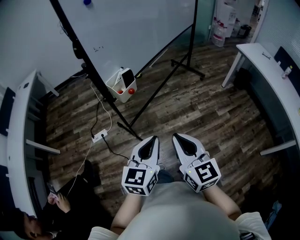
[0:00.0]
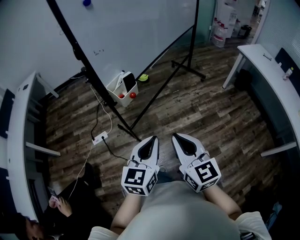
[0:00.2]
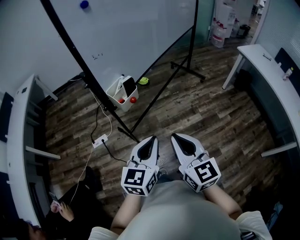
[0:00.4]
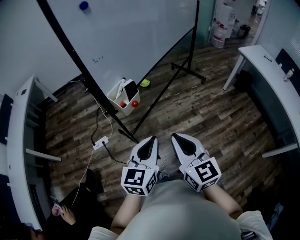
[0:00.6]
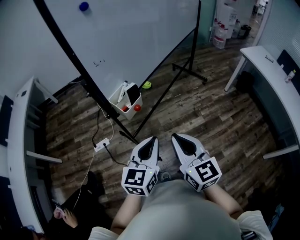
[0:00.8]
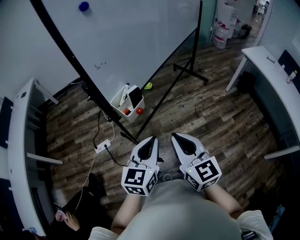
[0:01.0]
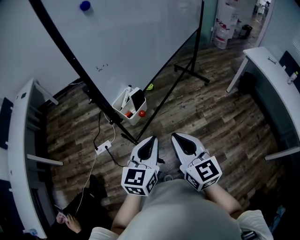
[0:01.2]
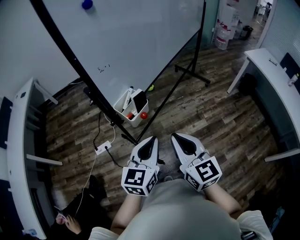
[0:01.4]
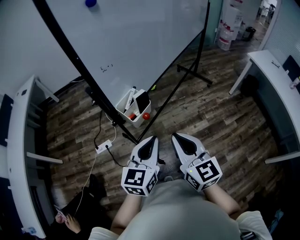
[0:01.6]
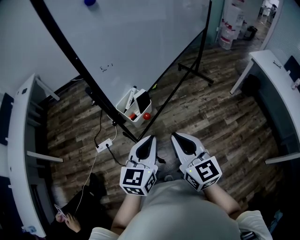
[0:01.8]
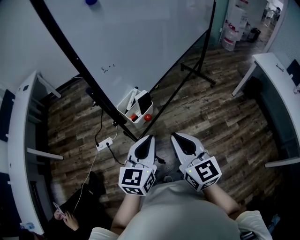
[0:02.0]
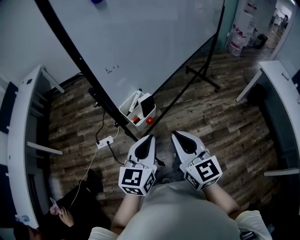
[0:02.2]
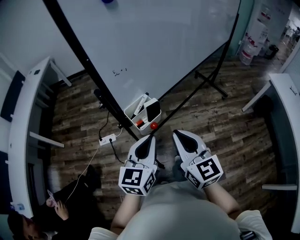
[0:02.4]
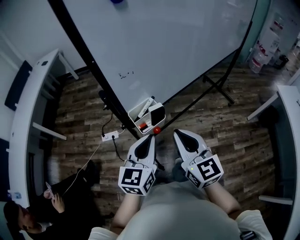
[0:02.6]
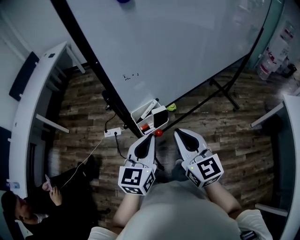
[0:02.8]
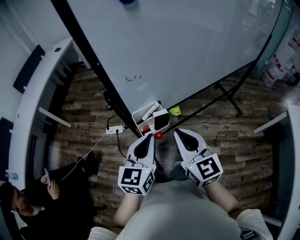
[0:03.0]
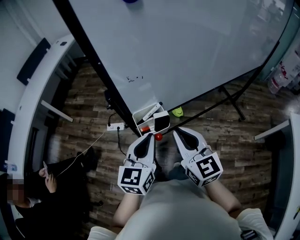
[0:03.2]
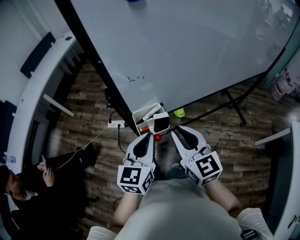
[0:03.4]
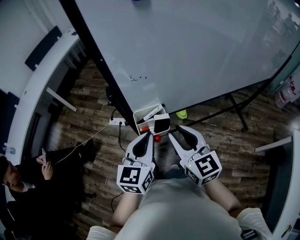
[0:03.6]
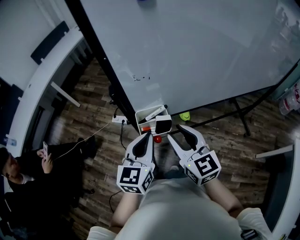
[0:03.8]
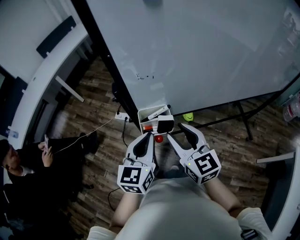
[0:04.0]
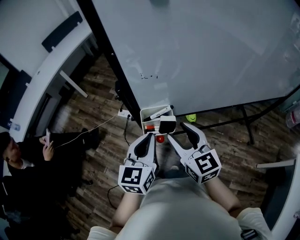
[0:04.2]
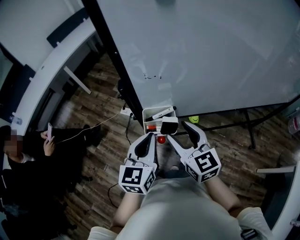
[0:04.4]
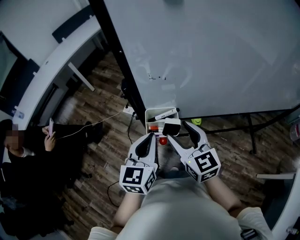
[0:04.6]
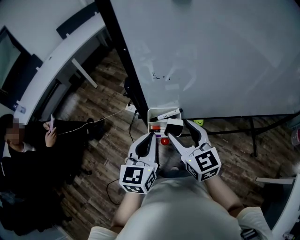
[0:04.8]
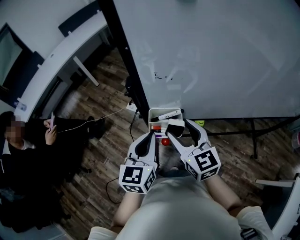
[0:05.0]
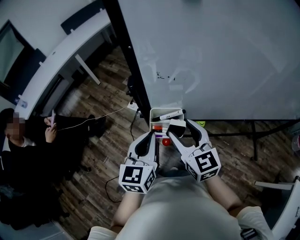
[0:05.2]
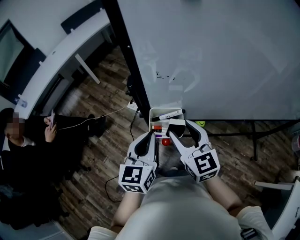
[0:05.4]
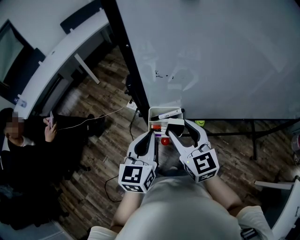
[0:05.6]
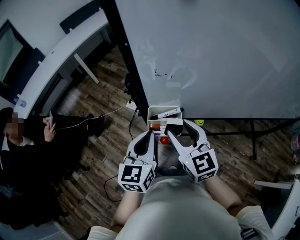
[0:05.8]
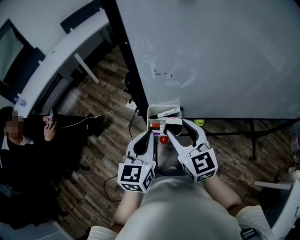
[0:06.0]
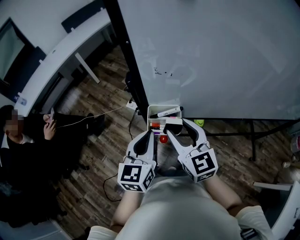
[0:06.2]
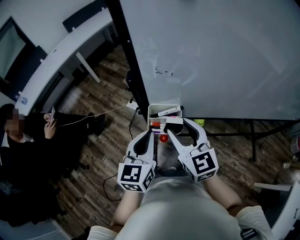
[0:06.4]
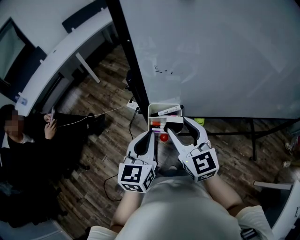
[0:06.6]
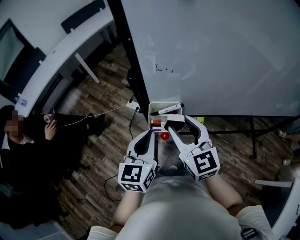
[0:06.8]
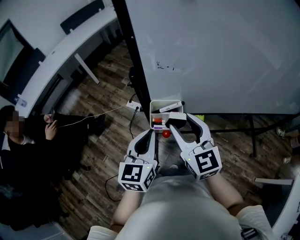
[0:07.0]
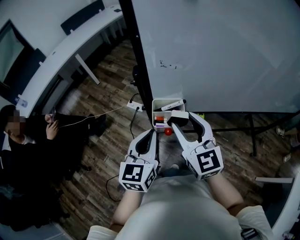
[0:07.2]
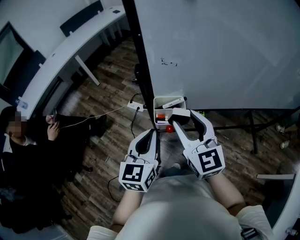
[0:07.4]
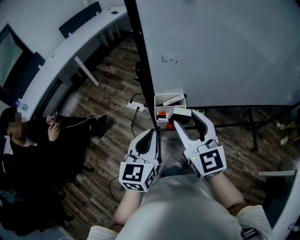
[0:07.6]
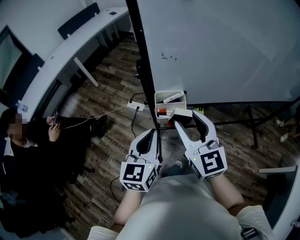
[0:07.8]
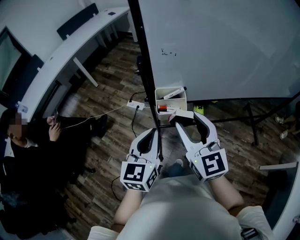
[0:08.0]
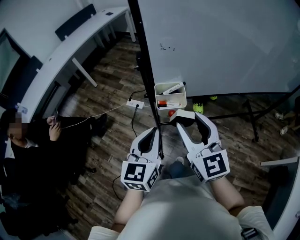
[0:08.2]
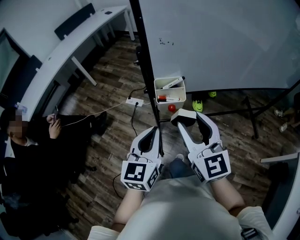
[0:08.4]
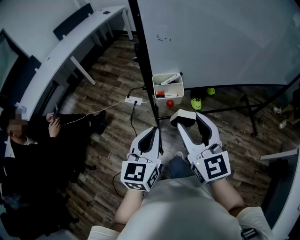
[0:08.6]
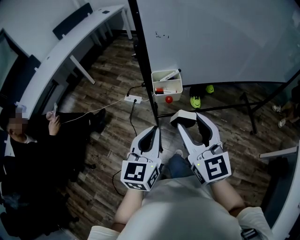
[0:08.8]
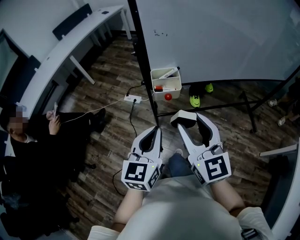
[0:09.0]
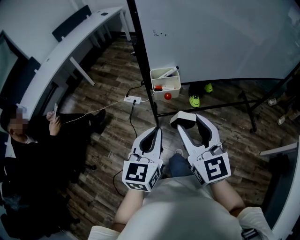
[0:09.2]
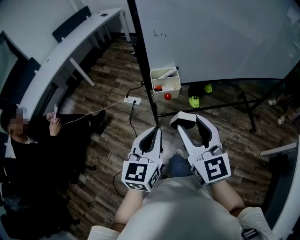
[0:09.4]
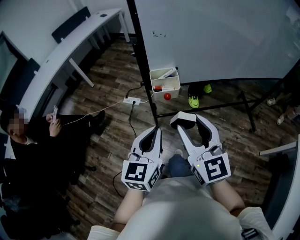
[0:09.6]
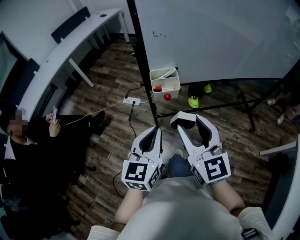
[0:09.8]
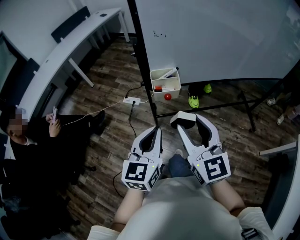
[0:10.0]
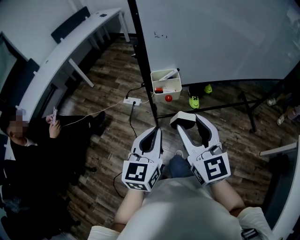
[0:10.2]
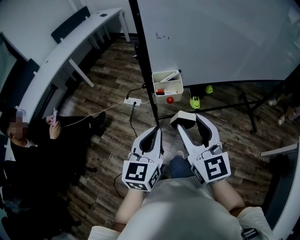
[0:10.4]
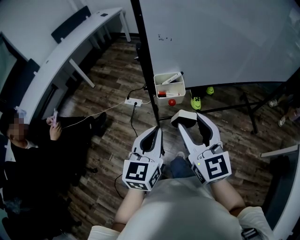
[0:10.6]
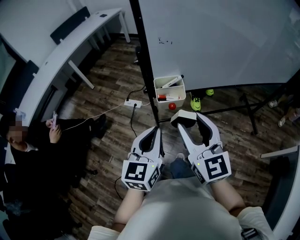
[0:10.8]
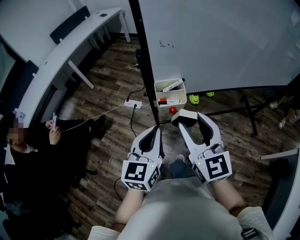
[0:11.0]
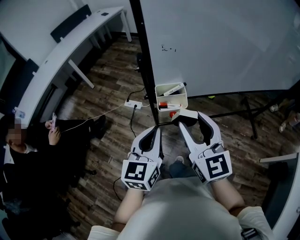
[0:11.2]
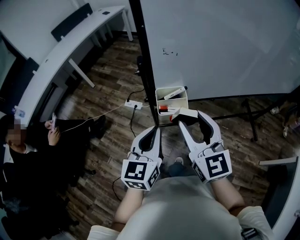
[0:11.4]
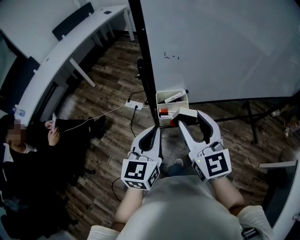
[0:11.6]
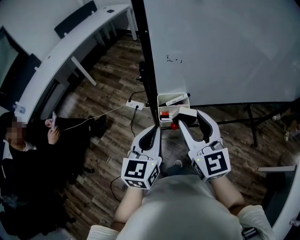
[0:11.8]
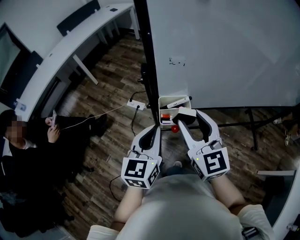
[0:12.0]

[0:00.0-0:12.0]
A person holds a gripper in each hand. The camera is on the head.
0:00.0 to 0:01.6: The two grippers go approximately 15 cm forward and to the left.
0:01.6 to 0:03.0: The left gripper ends up some 10 cm from where it was, and changes its angle by approximately 30 degrees. Meanwhile the right gripper moves about 15 cm, and rotates roughly 20 degrees.
0:03.0 to 0:04.4: The right gripper travels forward by approximately 5 cm, rotates approximately 30 degrees, and opens its fingers; the left gripper rotates some 20 degrees.
0:04.4 to 0:06.0: There are only small adjustments of the grippers.
0:06.0 to 0:07.6: The right gripper is displaced upward by approximately 5 cm; the left gripper moves backward, about 5 cm.
0:07.6 to 0:09.0: The two grippers go approximately 15 cm backward.
0:09.0 to 0:10.4: The grippers move only a little.
0:10.4 to 0:12.0: The two grippers go some 15 cm forward.

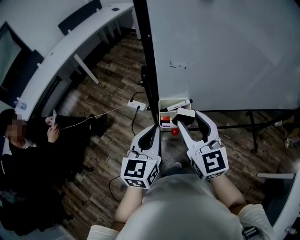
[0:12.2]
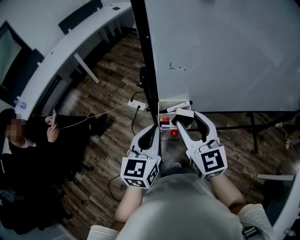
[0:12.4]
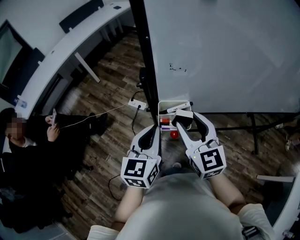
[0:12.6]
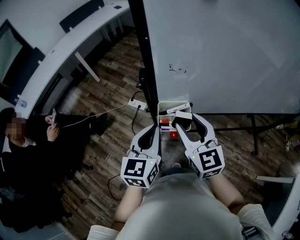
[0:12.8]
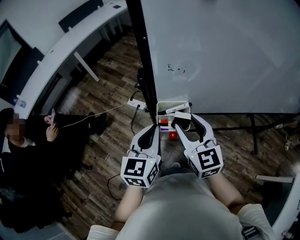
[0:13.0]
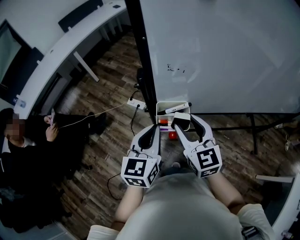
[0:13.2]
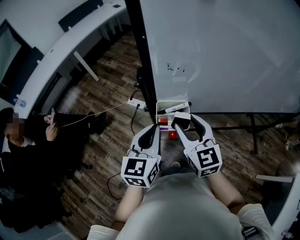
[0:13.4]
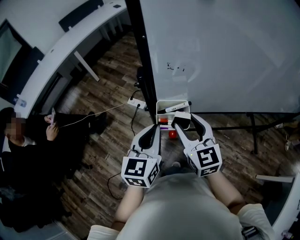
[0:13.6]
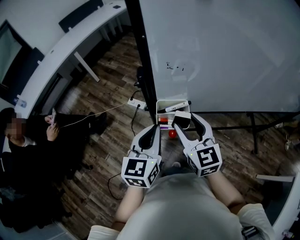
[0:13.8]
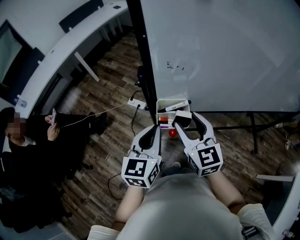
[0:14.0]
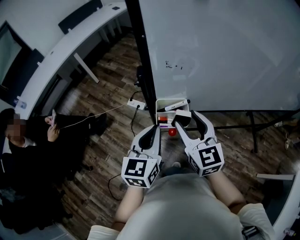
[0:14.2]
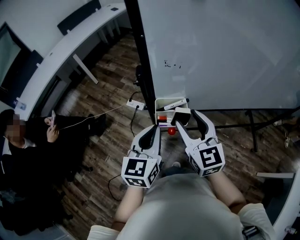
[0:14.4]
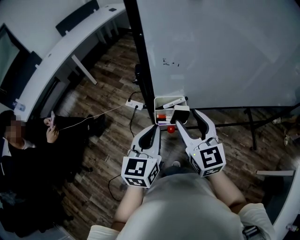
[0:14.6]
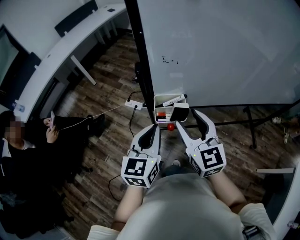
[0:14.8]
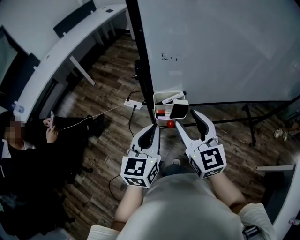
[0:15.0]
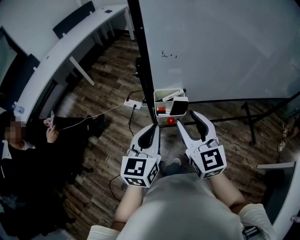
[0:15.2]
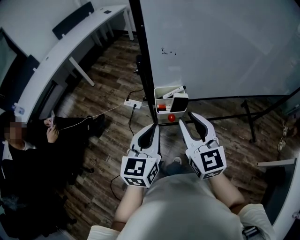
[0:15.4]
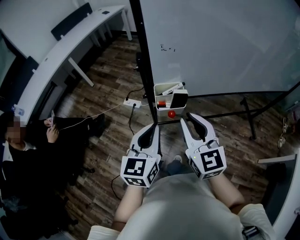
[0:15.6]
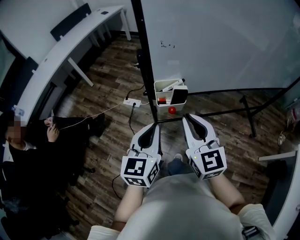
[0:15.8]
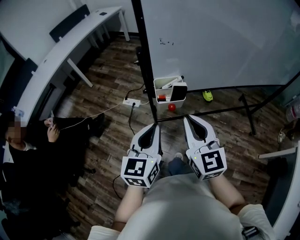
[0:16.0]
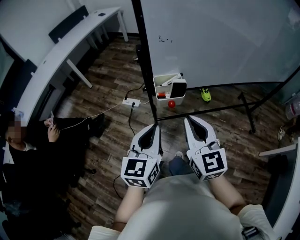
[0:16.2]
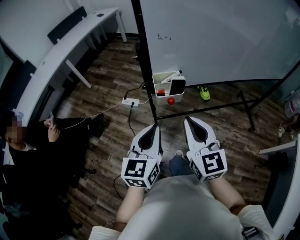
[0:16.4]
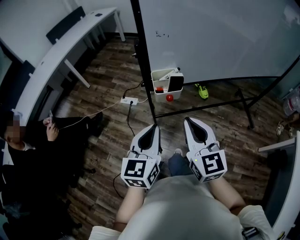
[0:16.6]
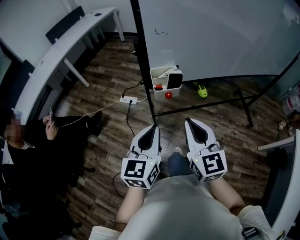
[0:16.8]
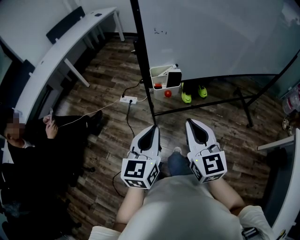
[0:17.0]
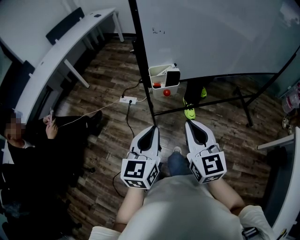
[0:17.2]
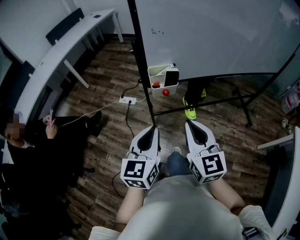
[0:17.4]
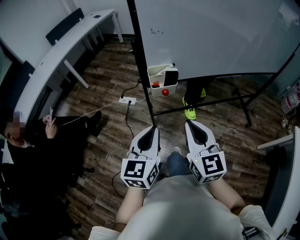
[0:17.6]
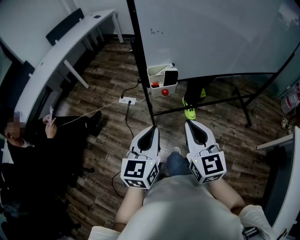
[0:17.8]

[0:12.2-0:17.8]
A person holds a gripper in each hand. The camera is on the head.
0:12.2 to 0:13.6: The right gripper travels downward by roughly 5 cm.
0:13.6 to 0:15.0: The right gripper goes about 5 cm backward.
0:15.0 to 0:16.4: The two grippers go roughly 10 cm backward. The right gripper closes its fingers.
0:16.4 to 0:17.8: Both grippers travel together backward, approximately 5 cm.

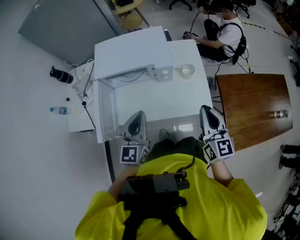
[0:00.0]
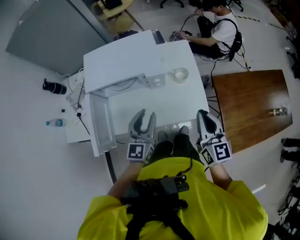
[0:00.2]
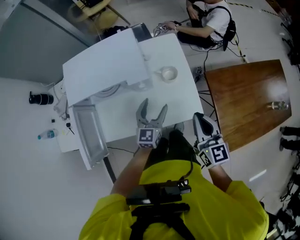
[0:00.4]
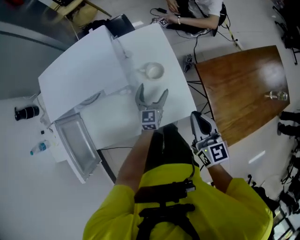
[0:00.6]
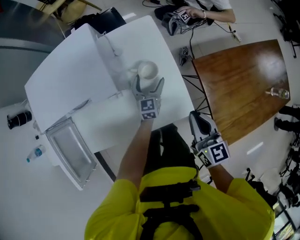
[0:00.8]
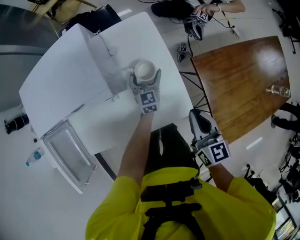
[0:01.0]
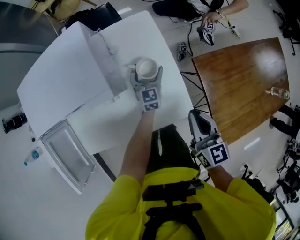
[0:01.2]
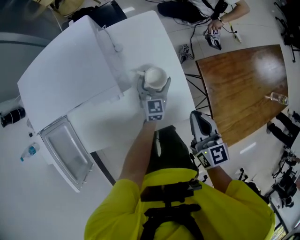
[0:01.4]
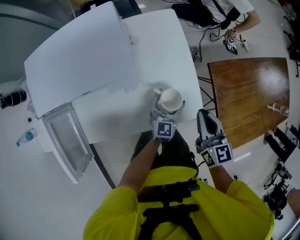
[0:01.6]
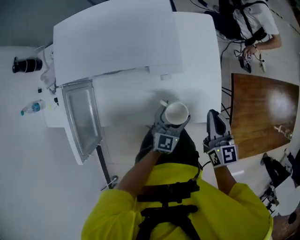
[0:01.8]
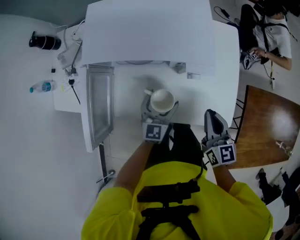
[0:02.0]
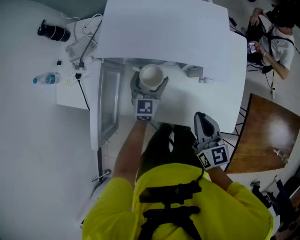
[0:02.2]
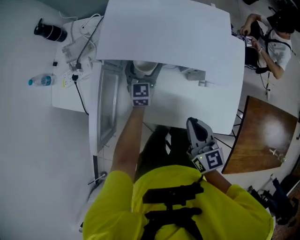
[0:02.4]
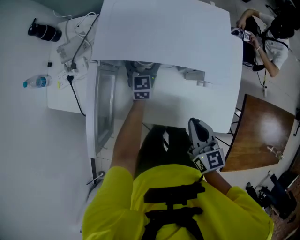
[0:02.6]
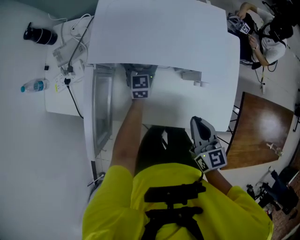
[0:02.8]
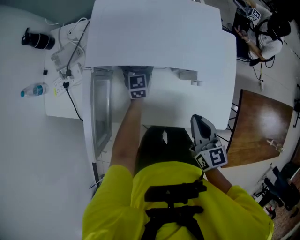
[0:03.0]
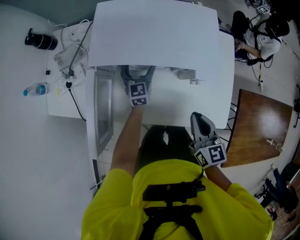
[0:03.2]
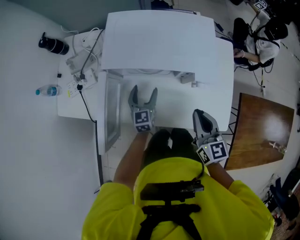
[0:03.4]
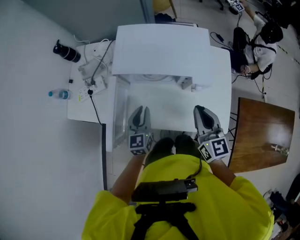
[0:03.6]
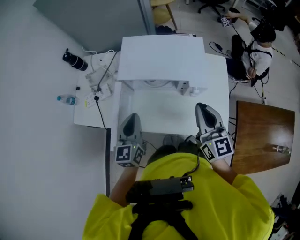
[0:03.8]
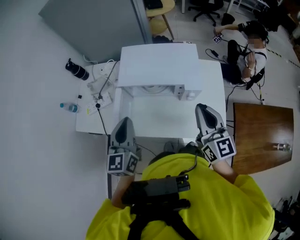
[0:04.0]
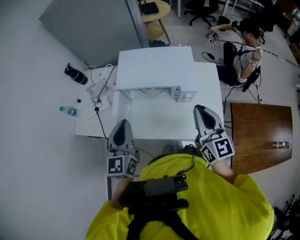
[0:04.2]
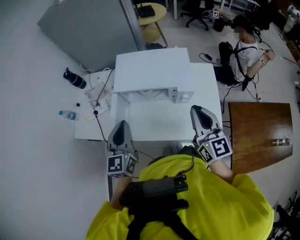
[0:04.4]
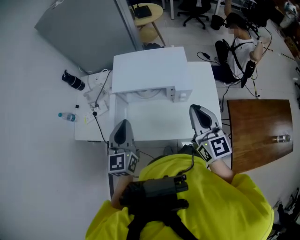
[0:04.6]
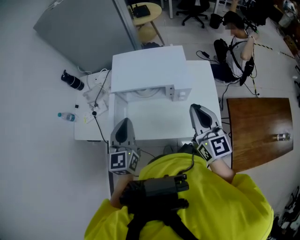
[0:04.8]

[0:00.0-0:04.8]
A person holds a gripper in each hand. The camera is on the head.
0:00.0 to 0:01.6: The right gripper shifts approximately 25 cm downward, forward and to the right, while the left gripper moves downward, to the right and forward, about 40 cm, and opens up.
0:01.6 to 0:03.2: The left gripper moves some 40 cm, and turns by roughly 40 degrees. The right gripper changes place by about 25 cm.
0:03.2 to 0:04.8: The right gripper moves upward, about 20 cm, and turns by some 30 degrees. The left gripper moves upward and backward, roughly 40 cm, and closes up.

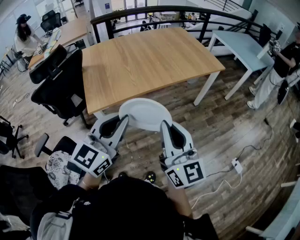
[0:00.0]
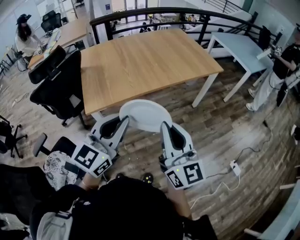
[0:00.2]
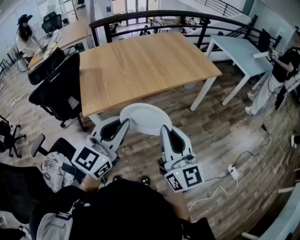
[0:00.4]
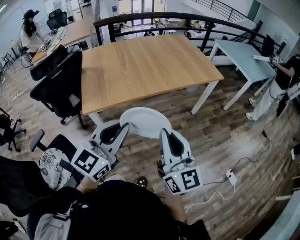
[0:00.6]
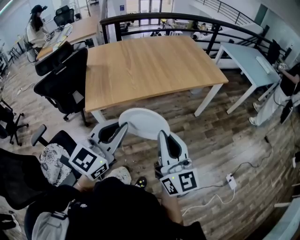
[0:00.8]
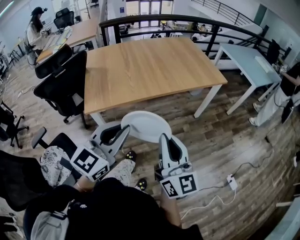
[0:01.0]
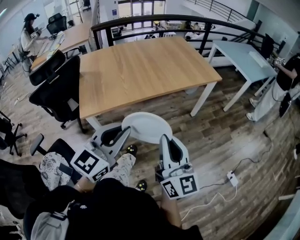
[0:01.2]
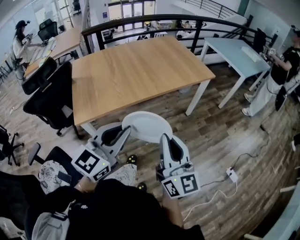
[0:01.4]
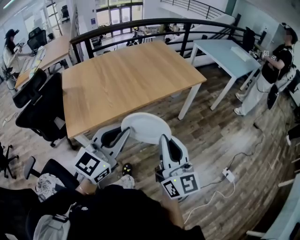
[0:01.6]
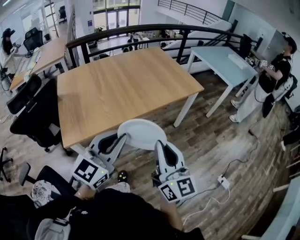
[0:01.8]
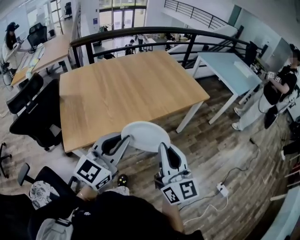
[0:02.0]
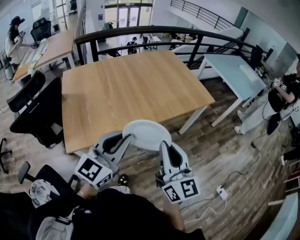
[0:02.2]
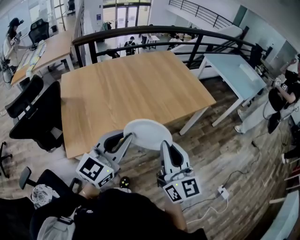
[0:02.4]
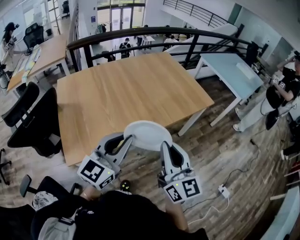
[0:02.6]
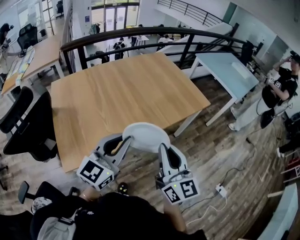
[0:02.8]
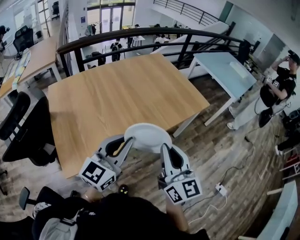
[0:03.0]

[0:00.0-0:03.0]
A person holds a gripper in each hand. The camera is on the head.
0:00.0 to 0:01.6: Both grippers move to the right and forward, some 15 cm.
0:01.6 to 0:03.0: Both grippers travel together forward and to the left, about 25 cm.
